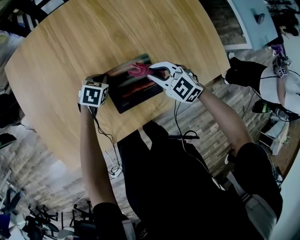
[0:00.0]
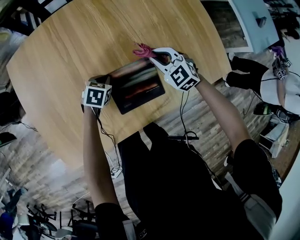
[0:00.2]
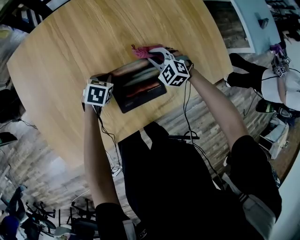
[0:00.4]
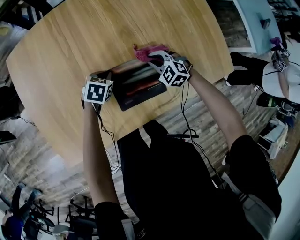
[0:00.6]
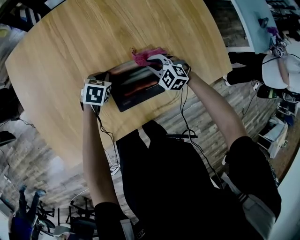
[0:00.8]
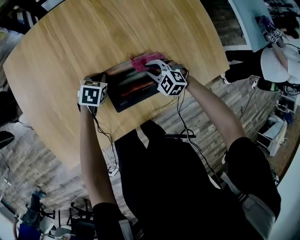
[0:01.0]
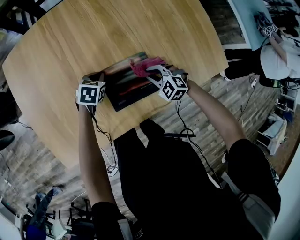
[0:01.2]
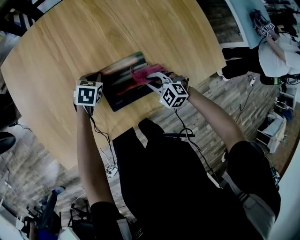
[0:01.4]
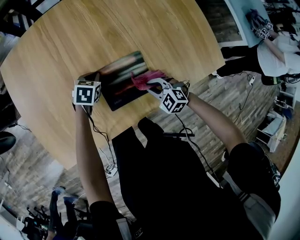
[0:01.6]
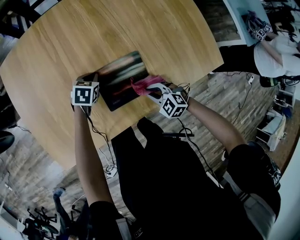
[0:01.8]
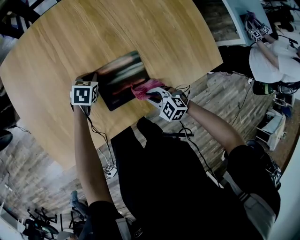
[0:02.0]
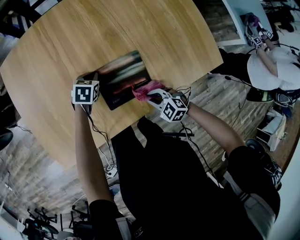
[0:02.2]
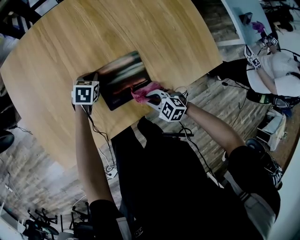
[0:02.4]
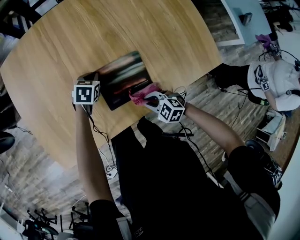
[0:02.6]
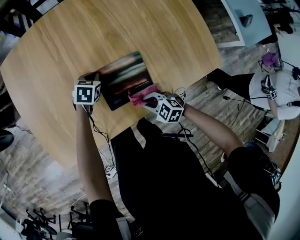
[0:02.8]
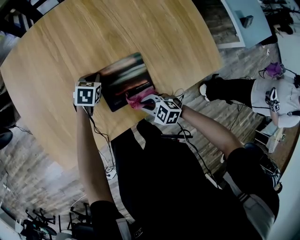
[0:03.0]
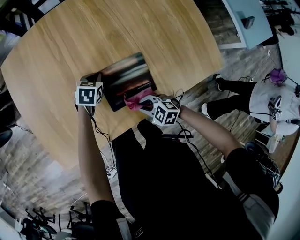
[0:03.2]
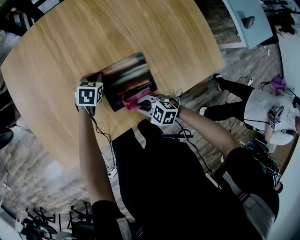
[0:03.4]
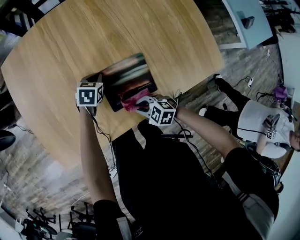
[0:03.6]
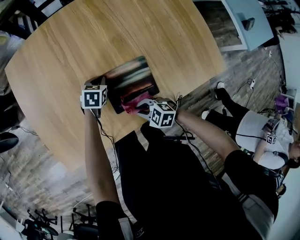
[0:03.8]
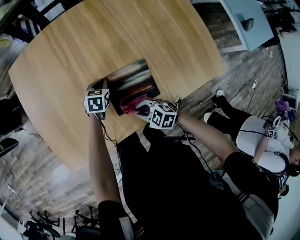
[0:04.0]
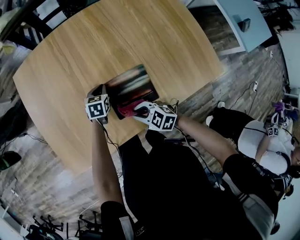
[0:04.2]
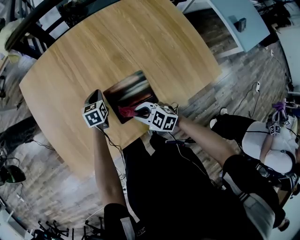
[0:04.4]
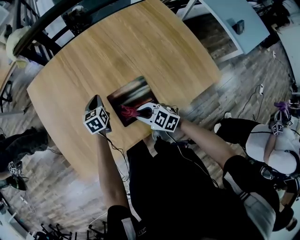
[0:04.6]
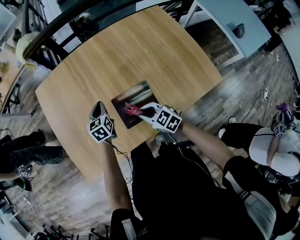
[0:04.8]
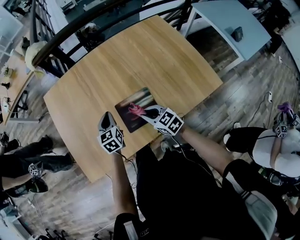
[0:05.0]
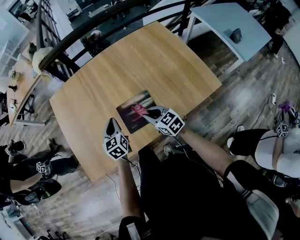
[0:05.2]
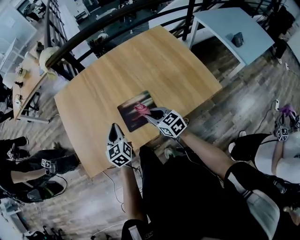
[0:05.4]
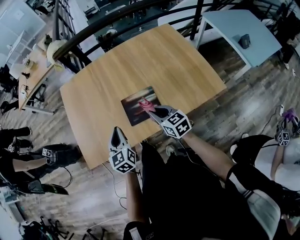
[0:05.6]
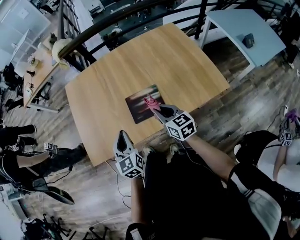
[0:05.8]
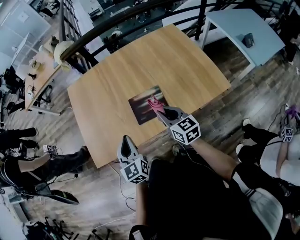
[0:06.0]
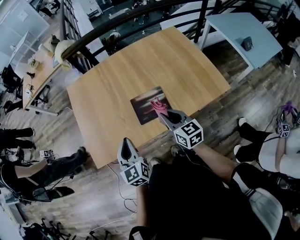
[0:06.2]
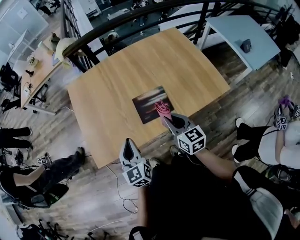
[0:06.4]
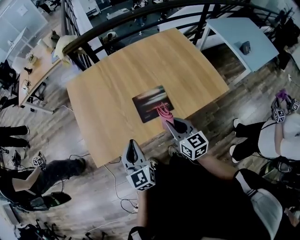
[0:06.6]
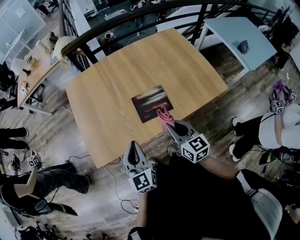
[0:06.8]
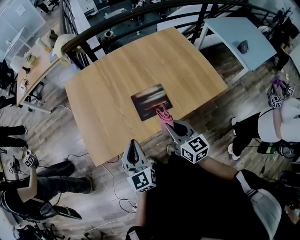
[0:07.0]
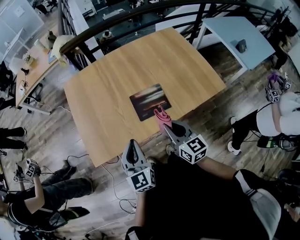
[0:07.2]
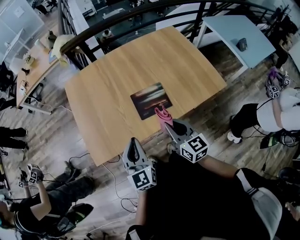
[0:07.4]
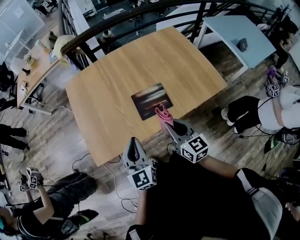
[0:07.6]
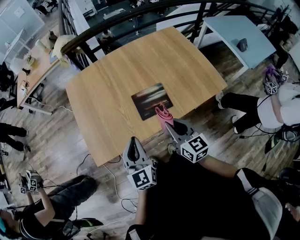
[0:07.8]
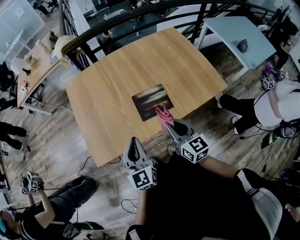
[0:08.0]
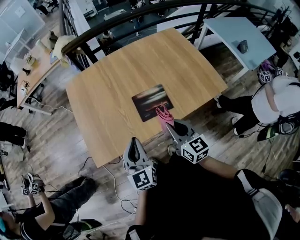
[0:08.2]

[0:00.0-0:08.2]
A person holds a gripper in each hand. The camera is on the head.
0.0 to 1.6 s: The right gripper moves downward and backward, some 15 cm.
1.6 to 3.2 s: The right gripper shifts by approximately 10 cm.
3.2 to 5.0 s: The grippers both shift upward by some 15 cm. The right gripper turns by roughly 40 degrees. Meanwhile the left gripper rotates some 40 degrees.
5.0 to 6.6 s: The right gripper shifts some 20 cm upward and backward, and changes its angle by about 30 degrees, while the left gripper heads backward and upward, covering roughly 30 cm.
6.6 to 8.2 s: The grippers move only a little.

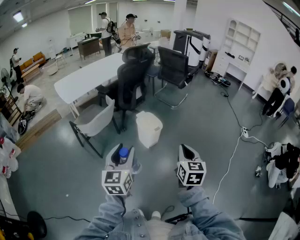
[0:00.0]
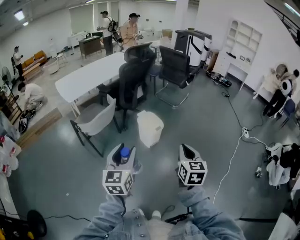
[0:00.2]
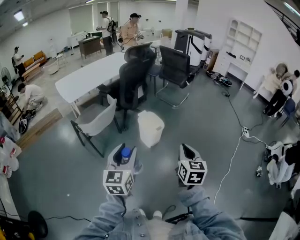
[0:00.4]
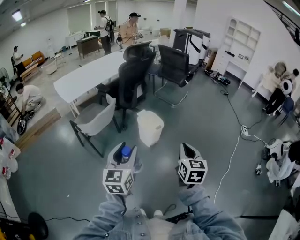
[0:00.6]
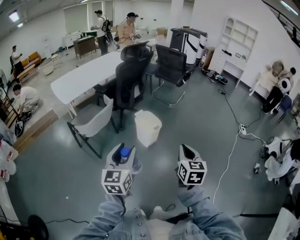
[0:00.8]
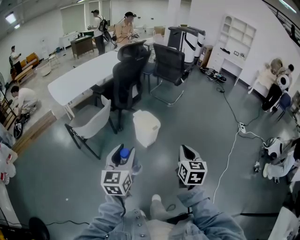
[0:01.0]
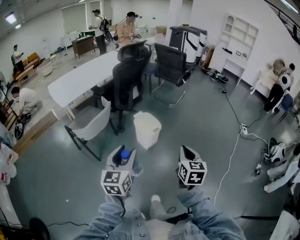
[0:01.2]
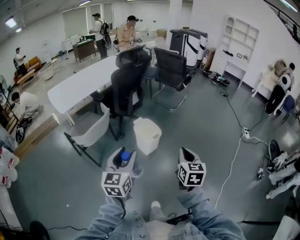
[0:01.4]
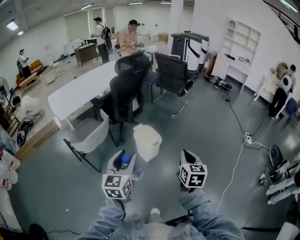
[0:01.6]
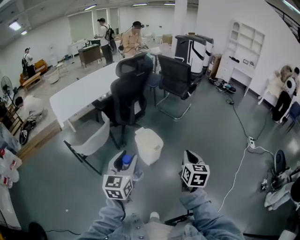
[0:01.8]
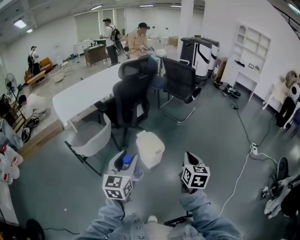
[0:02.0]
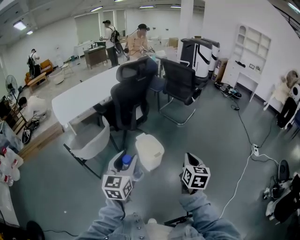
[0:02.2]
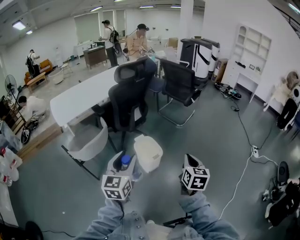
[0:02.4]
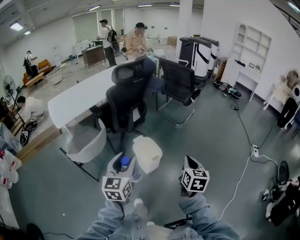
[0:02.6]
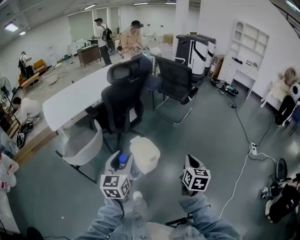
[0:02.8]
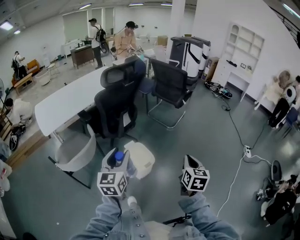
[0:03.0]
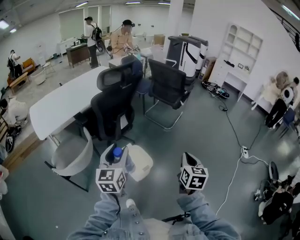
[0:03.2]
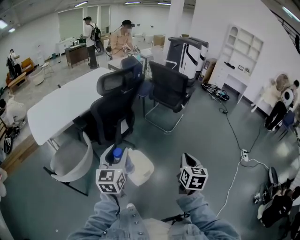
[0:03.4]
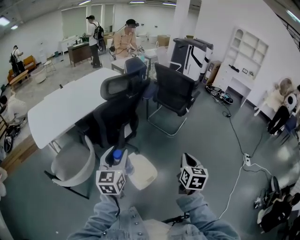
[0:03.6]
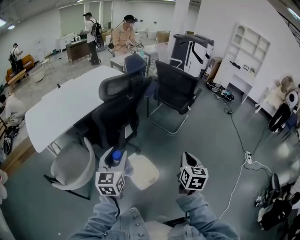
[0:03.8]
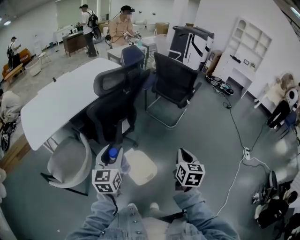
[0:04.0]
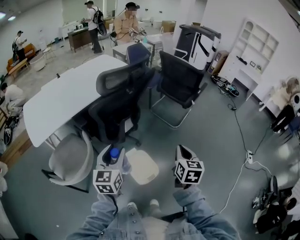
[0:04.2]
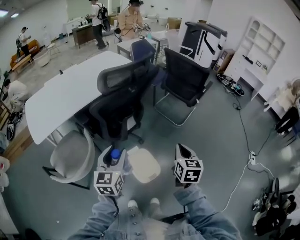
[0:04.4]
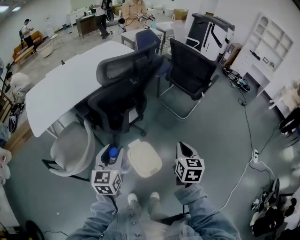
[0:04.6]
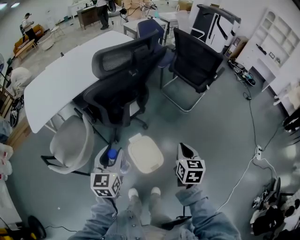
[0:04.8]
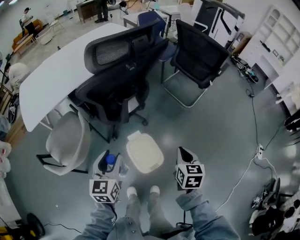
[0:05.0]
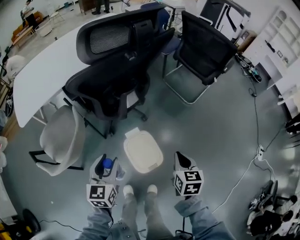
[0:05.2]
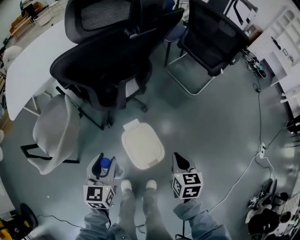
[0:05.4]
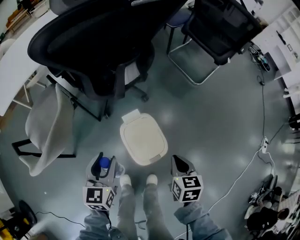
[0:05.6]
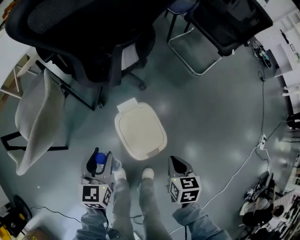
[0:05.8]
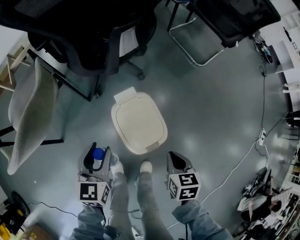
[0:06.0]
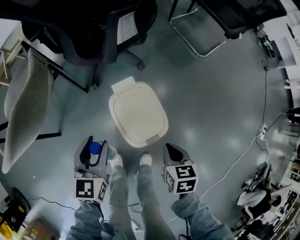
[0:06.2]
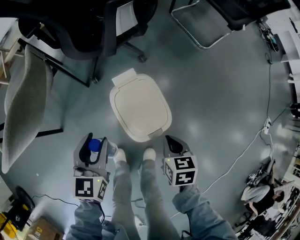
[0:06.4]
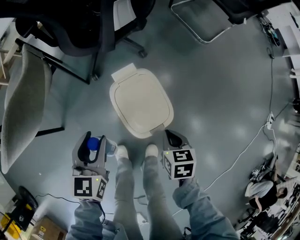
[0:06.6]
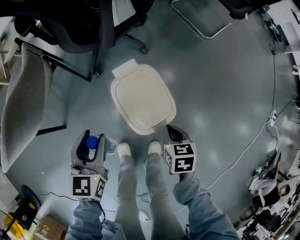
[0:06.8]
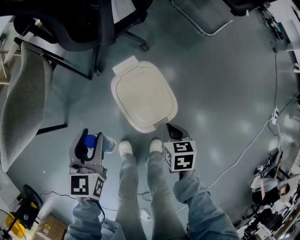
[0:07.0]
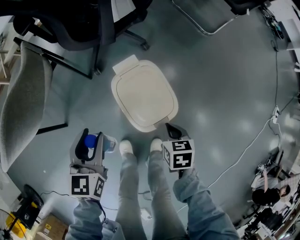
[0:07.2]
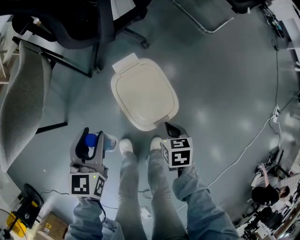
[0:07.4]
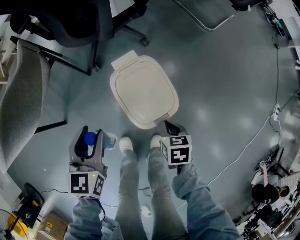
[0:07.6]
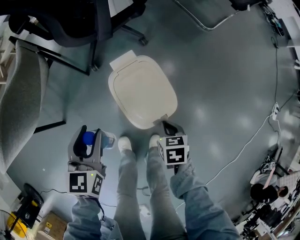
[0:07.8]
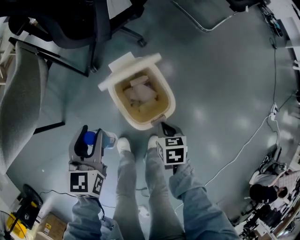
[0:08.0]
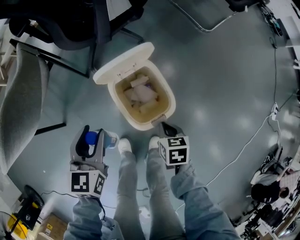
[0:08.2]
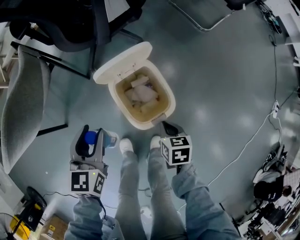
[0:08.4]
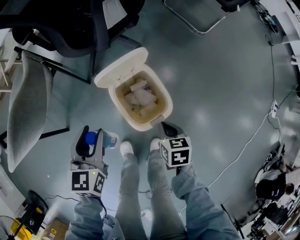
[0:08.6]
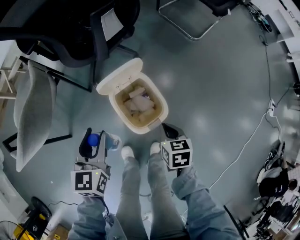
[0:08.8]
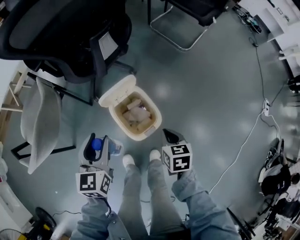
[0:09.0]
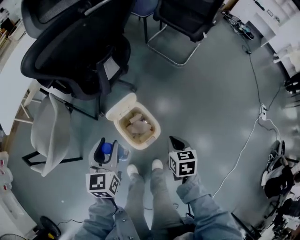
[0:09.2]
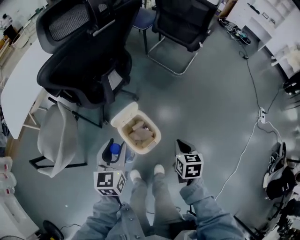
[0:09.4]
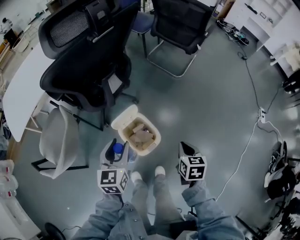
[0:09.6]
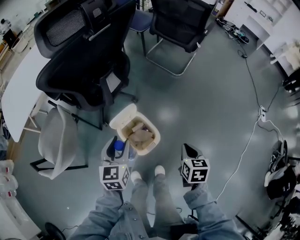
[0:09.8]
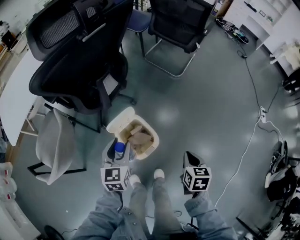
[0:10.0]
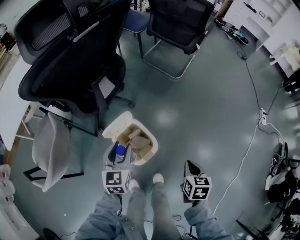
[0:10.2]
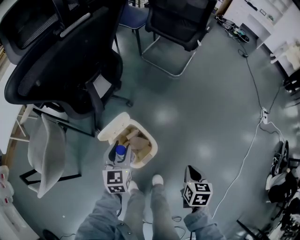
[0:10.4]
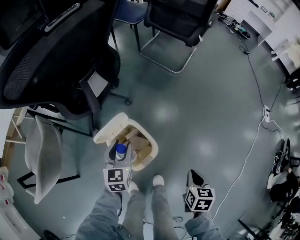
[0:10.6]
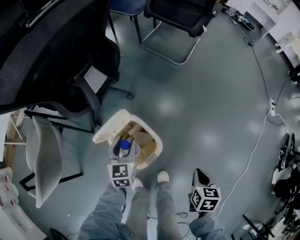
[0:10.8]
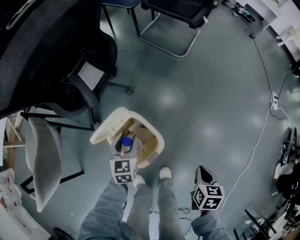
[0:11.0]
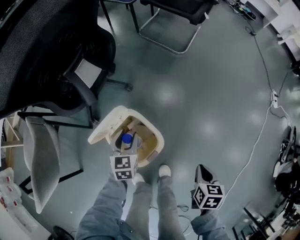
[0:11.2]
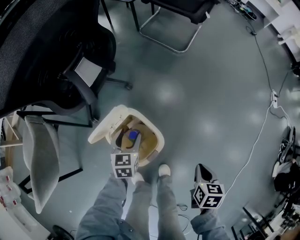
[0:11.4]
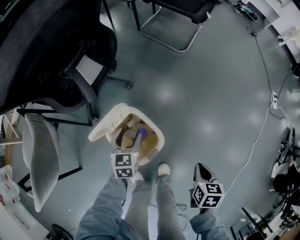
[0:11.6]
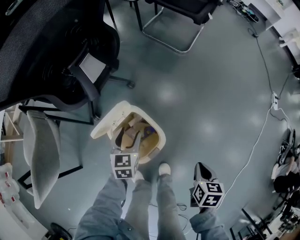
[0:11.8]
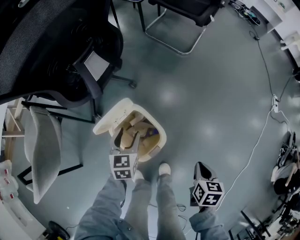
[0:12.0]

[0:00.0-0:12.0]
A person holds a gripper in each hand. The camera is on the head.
0.0 to 1.6 s: Both grippers move forward, some 15 cm.
1.6 to 3.0 s: The grippers both shift forward by approximately 20 cm.
3.0 to 4.4 s: The left gripper shifts approximately 25 cm forward, while the right gripper moves forward and to the left, about 30 cm.
4.4 to 6.0 s: Both grippers move downward, some 40 cm. The left gripper rotates approximately 20 degrees; the right gripper swivels roughly 30 degrees.
6.0 to 7.6 s: The right gripper moves downward, approximately 15 cm.
7.6 to 9.0 s: The grippers both shift upward by approximately 15 cm.
9.0 to 10.4 s: The left gripper goes approximately 15 cm to the right and forward, and reaches approximately 10 cm upward, then returns. Meanwhile the right gripper moves to the right and upward, approximately 15 cm.
10.4 to 12.0 s: The right gripper shifts some 5 cm downward. The left gripper is displaced downward by some 15 cm.

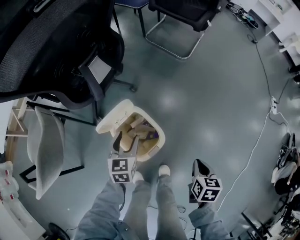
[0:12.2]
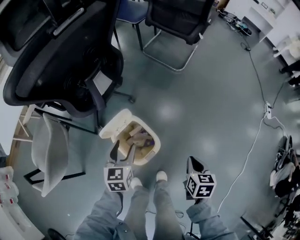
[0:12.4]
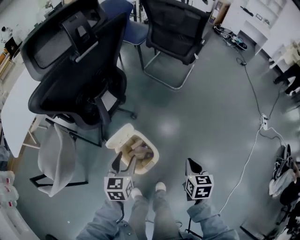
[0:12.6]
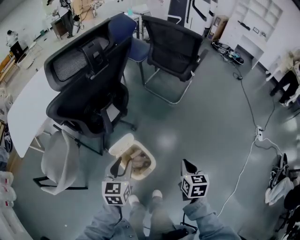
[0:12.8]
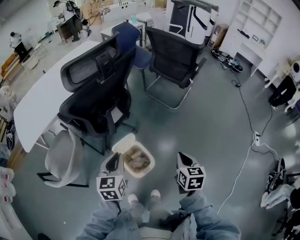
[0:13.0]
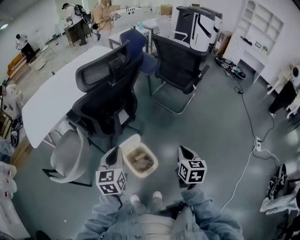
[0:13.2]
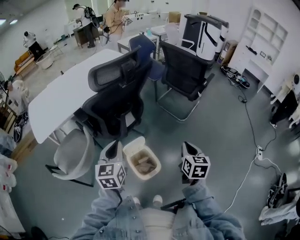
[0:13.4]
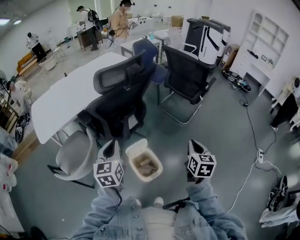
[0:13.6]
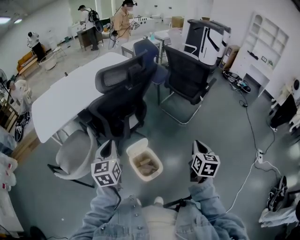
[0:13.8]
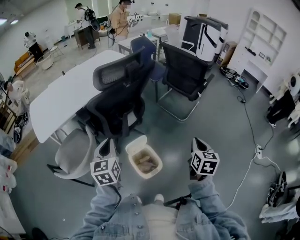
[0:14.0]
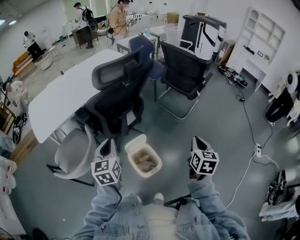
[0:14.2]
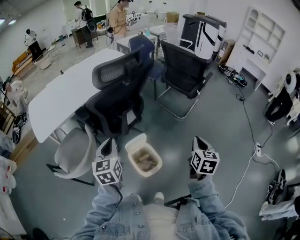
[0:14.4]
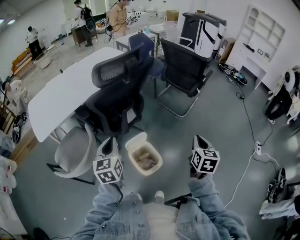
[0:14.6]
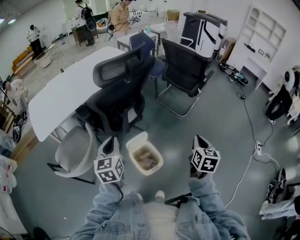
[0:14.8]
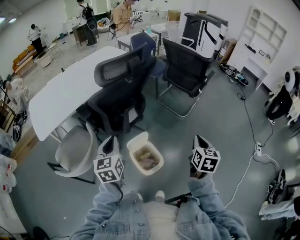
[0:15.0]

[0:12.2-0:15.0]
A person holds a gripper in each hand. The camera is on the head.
12.2 to 13.6 s: The two grippers go approximately 40 cm upward. The right gripper angles its fingers upward, by approximately 30 degrees. The left gripper turns by about 30 degrees, and closes its fingers.
13.6 to 15.0 s: The grippers move only a little.

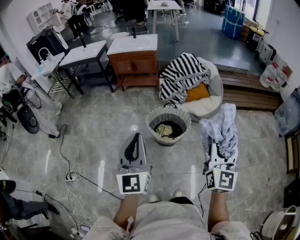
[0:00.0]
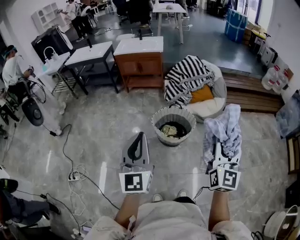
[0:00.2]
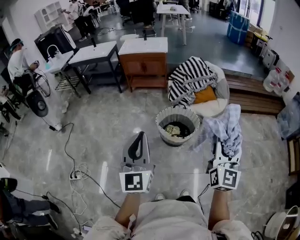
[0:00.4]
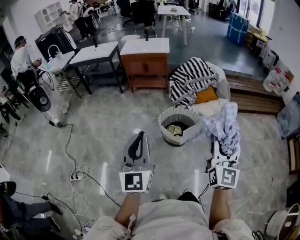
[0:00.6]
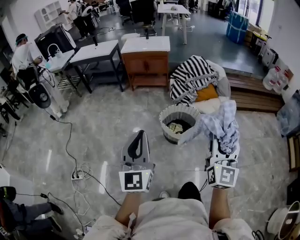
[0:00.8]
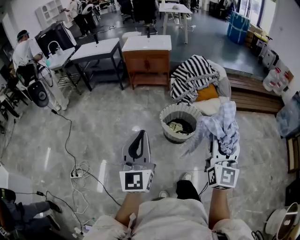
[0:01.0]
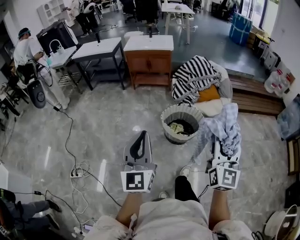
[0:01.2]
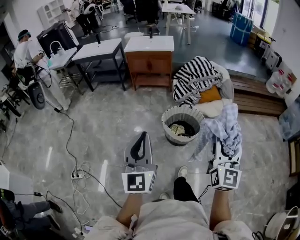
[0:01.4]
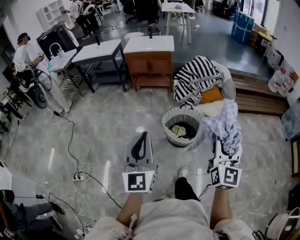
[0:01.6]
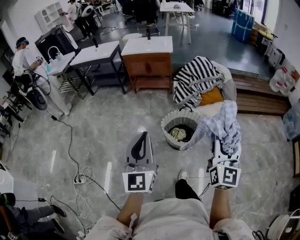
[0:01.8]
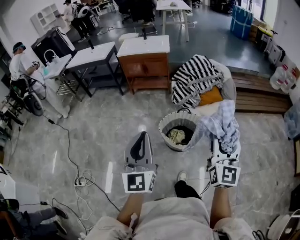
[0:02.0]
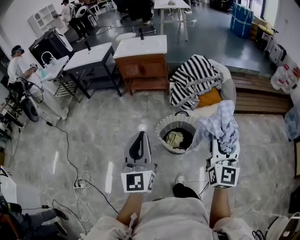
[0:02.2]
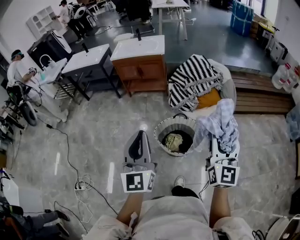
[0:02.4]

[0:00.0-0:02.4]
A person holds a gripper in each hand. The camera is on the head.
0.0 to 1.2 s: Both grippers move to the left and backward, approximately 15 cm.
1.2 to 2.4 s: Both grippers travel together forward and to the right, some 30 cm.
